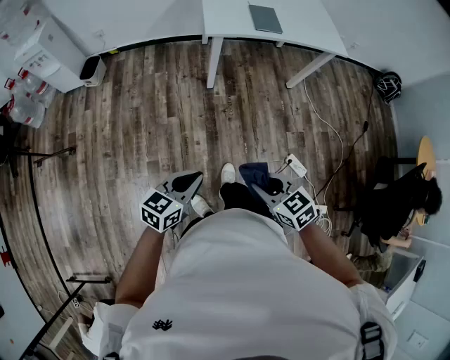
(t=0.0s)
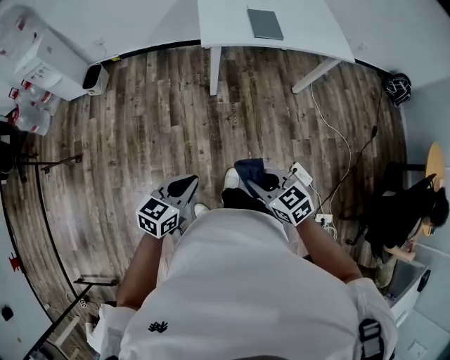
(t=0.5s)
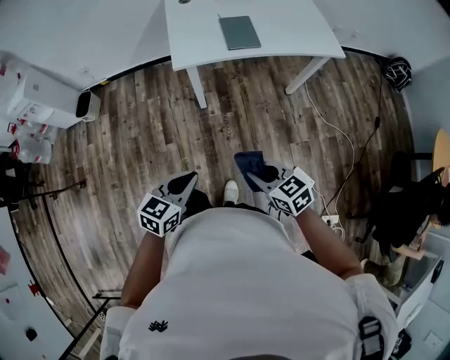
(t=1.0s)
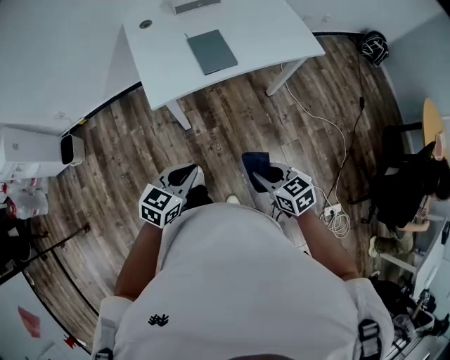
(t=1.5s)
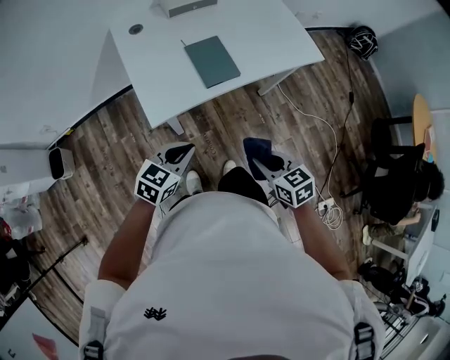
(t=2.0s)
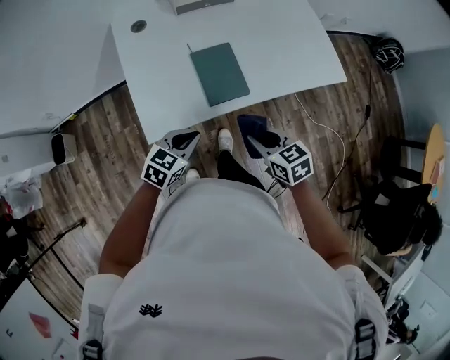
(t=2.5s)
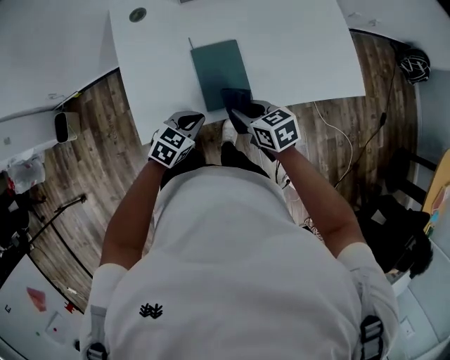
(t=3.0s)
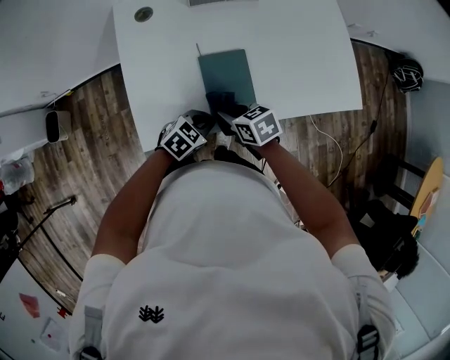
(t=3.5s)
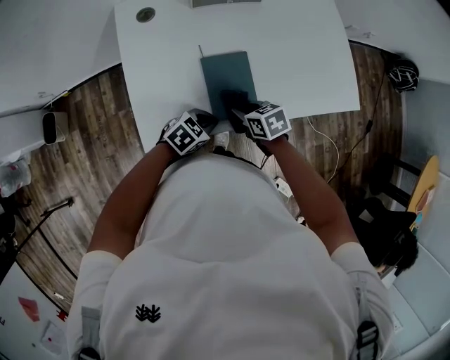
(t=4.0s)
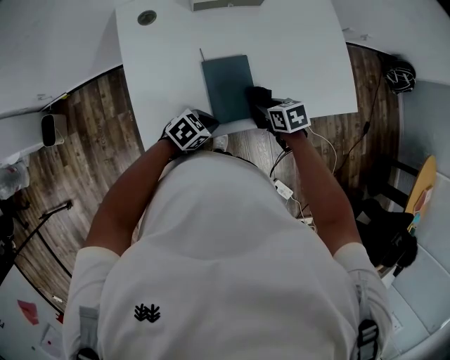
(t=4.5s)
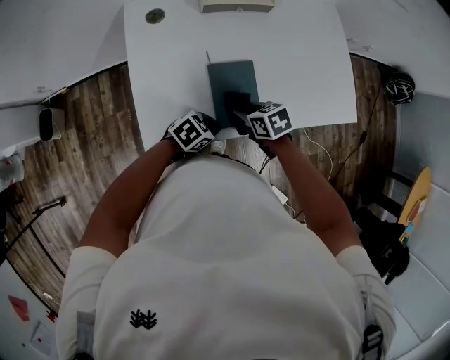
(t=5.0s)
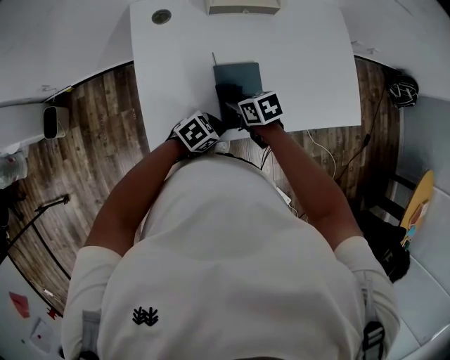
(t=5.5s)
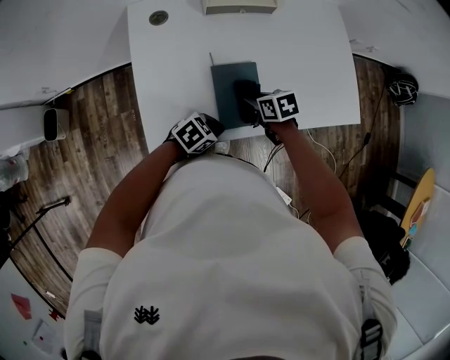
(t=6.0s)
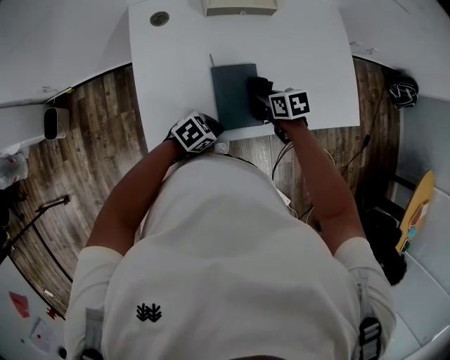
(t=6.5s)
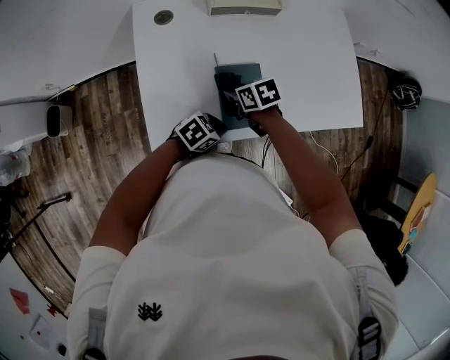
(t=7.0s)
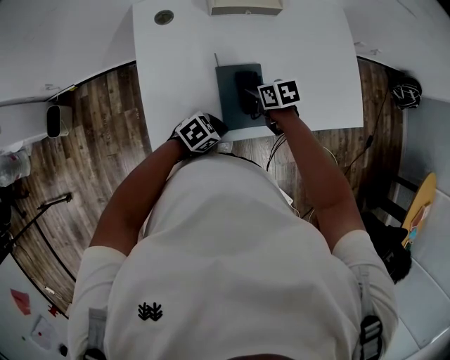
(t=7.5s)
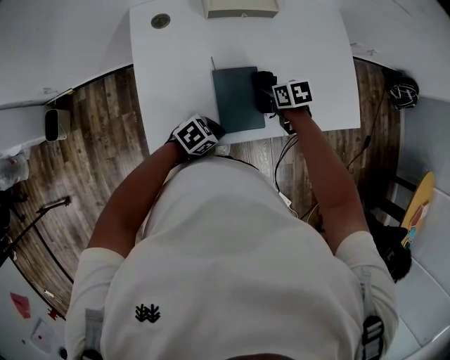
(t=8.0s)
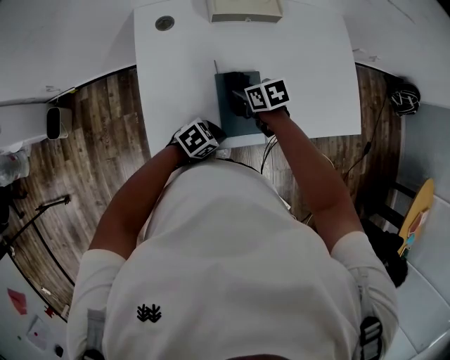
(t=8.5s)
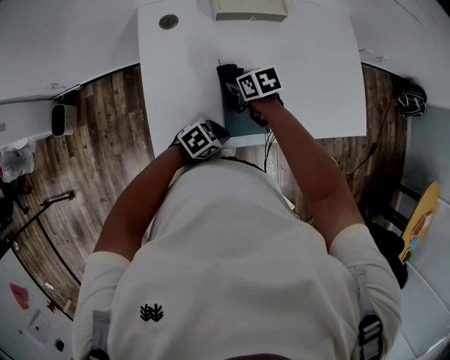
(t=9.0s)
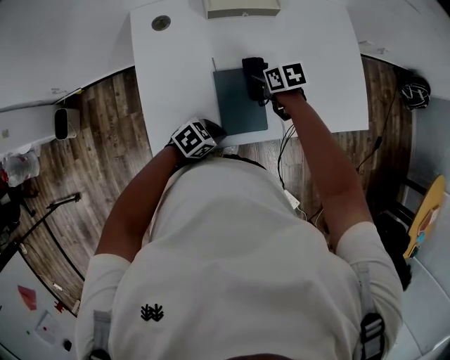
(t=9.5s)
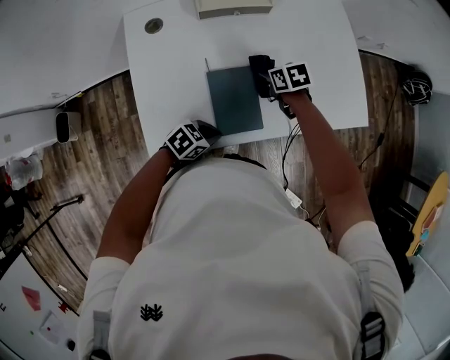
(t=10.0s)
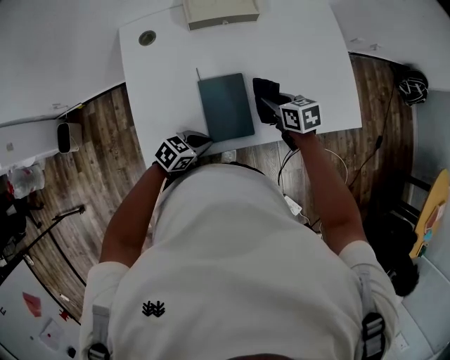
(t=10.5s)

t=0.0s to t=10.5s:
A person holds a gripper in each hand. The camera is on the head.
t=0.0s to t=2.0s: The two grippers travel together, approximately 50 cm. The right gripper rotates some 30 degrees; the left gripper swivels roughly 30 degrees.
t=2.0s to t=4.0s: The left gripper moves roughly 25 cm, and rotates some 20 degrees; the right gripper shifts by about 30 cm, and rotates some 20 degrees.
t=4.0s to t=6.5s: The right gripper moves roughly 10 cm.
t=6.5s to t=8.5s: The right gripper shifts by approximately 10 cm.
t=8.5s to t=10.5s: The right gripper shifts by some 15 cm.

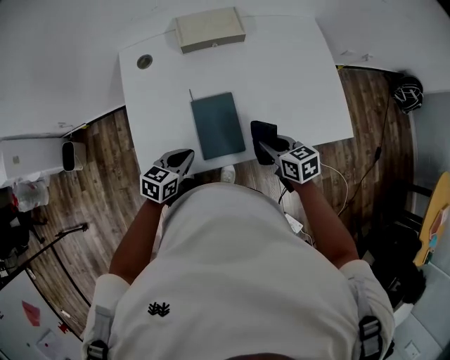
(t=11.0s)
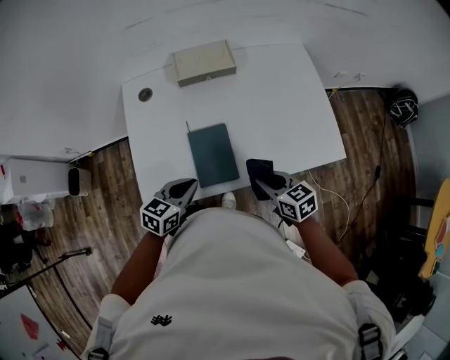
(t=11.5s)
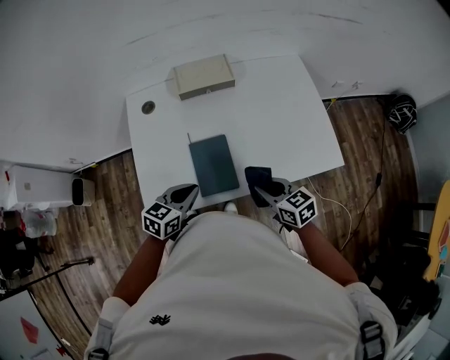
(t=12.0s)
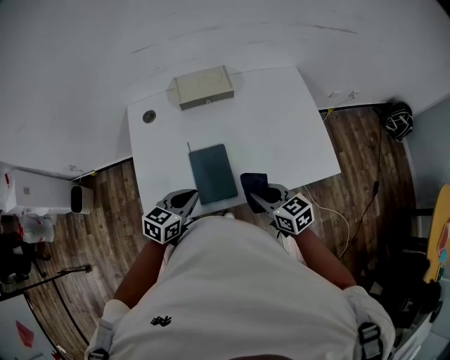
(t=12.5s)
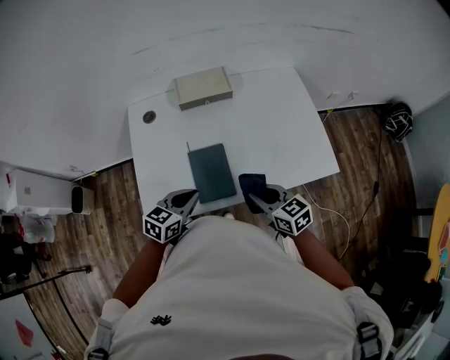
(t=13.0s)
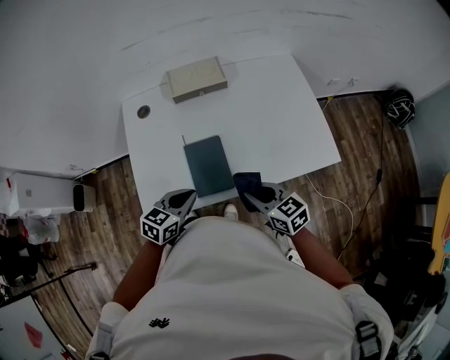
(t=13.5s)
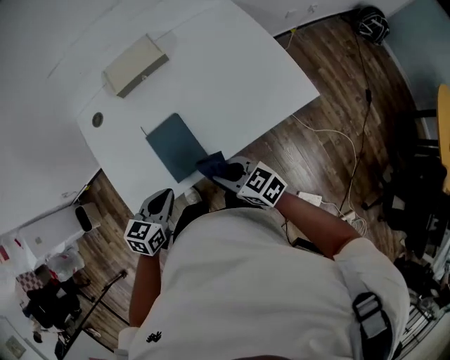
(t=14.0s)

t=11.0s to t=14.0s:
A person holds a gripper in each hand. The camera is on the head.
t=11.0s to t=12.5s: Both grippers move upward, some 5 cm.
t=12.5s to t=14.0s: The right gripper shifts by approximately 5 cm.

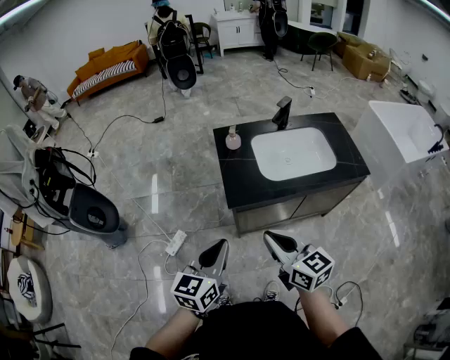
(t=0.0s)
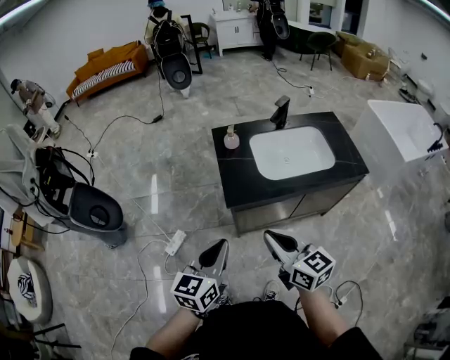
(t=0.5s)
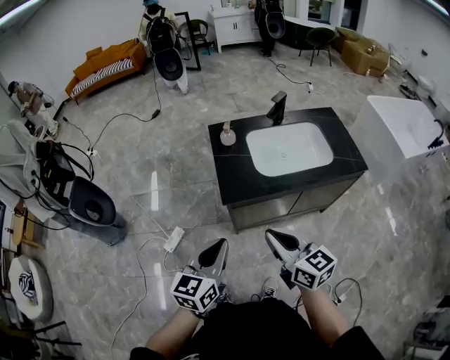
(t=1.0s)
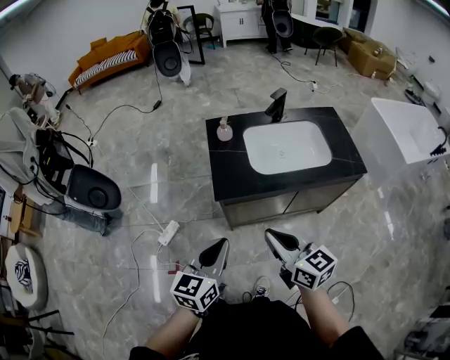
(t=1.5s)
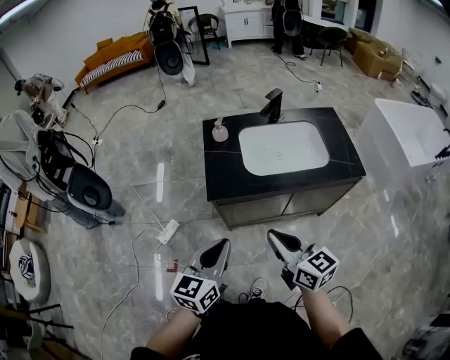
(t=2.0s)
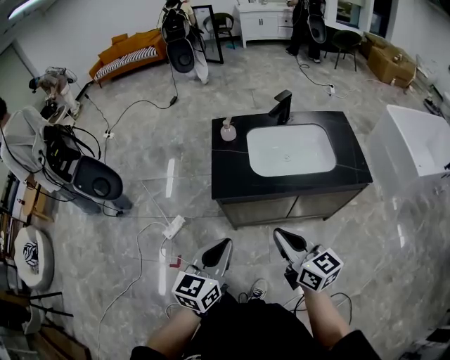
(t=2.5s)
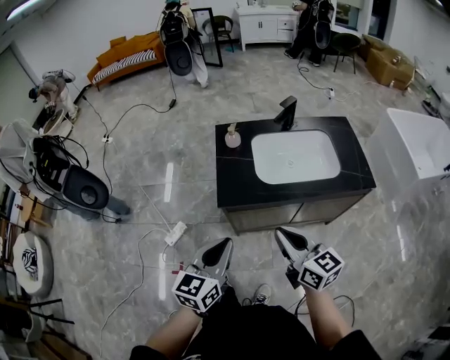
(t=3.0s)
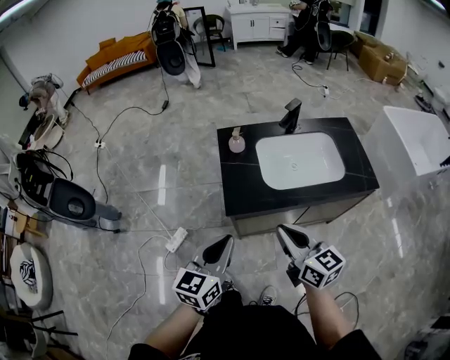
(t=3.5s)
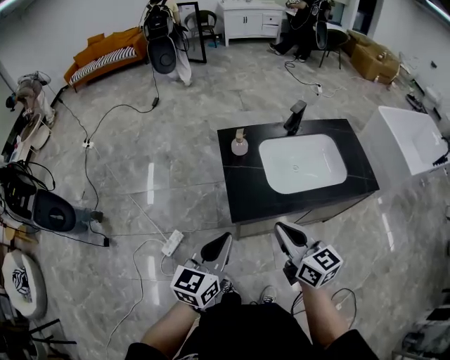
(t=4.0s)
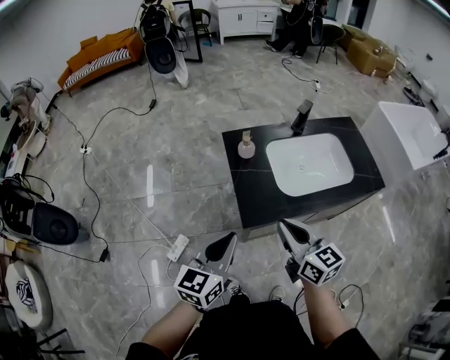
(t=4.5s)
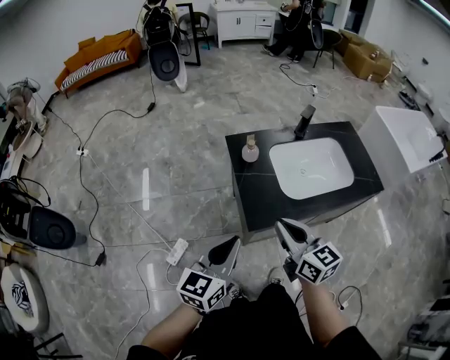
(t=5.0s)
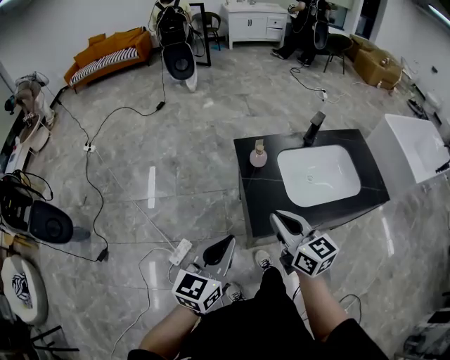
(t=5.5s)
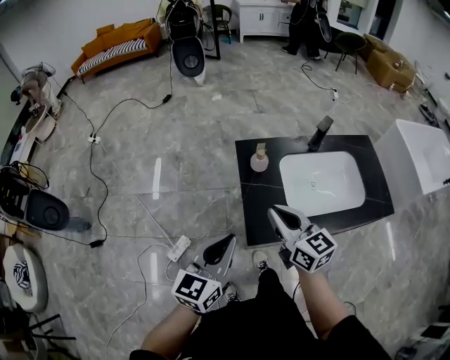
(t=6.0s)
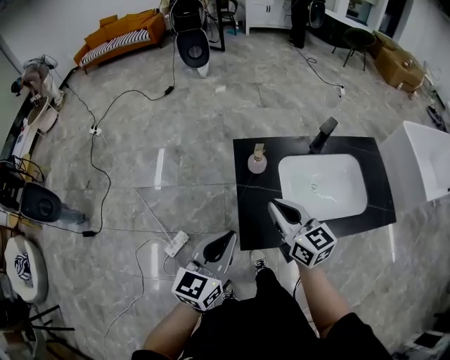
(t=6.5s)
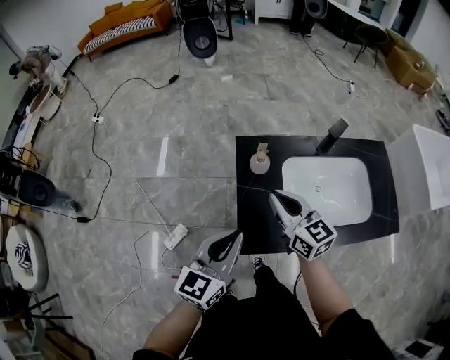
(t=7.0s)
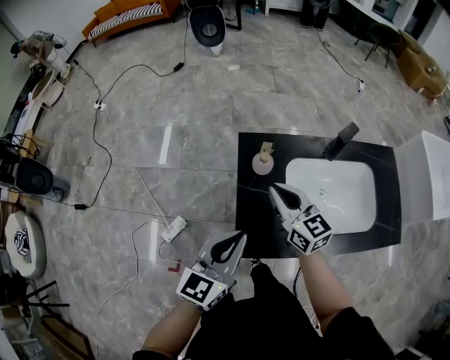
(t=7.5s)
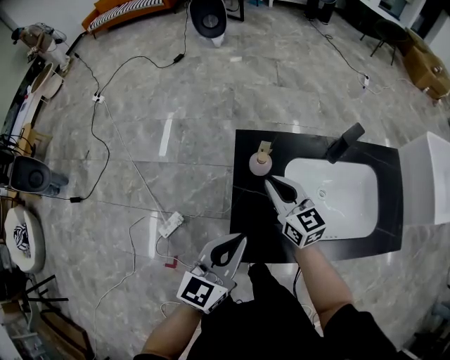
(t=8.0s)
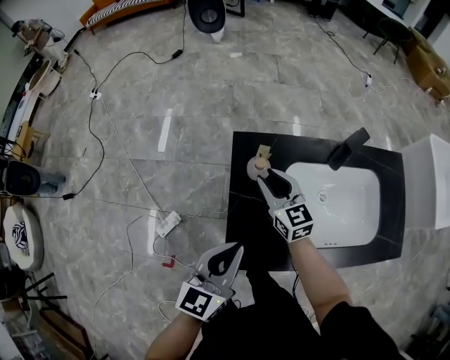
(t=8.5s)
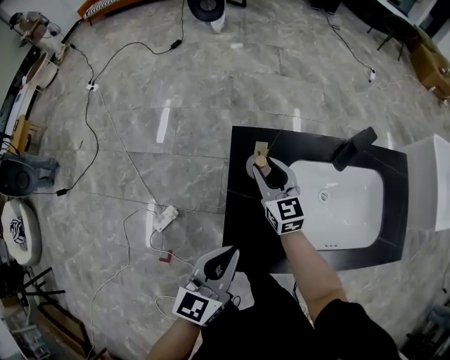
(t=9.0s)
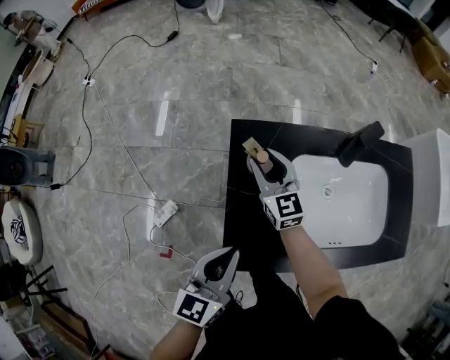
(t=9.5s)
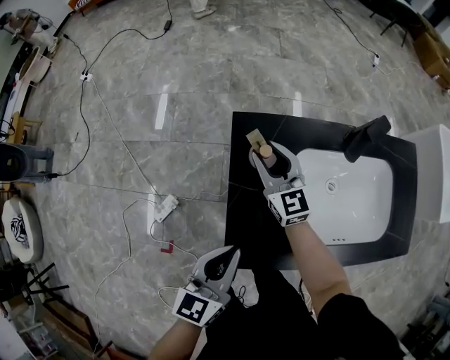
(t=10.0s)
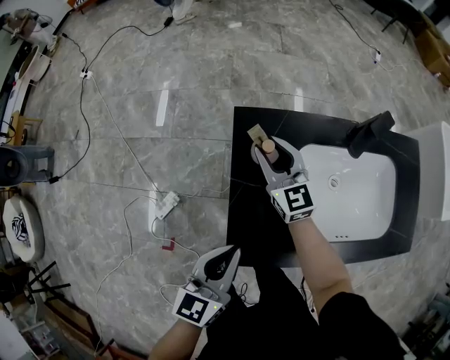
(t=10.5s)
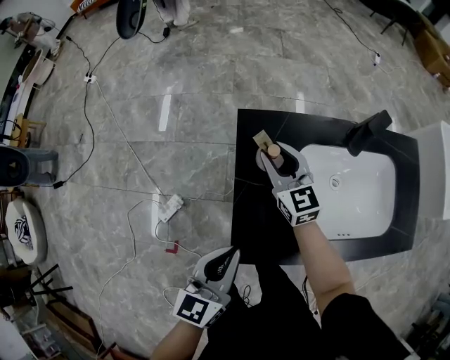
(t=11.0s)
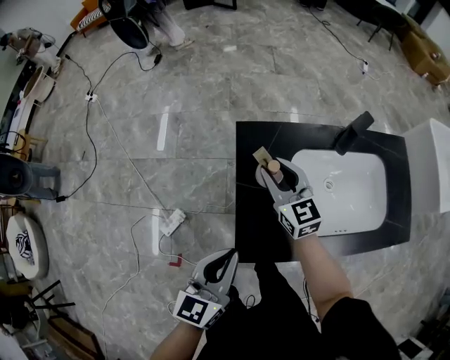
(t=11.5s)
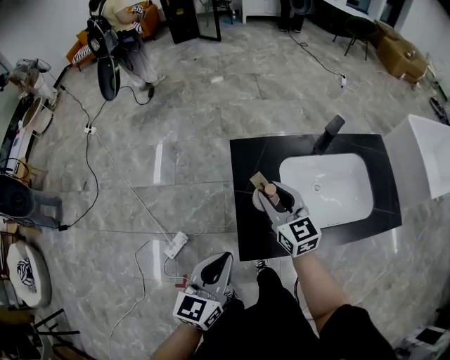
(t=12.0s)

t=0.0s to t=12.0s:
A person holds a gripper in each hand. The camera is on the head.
t=0.0s to t=2.0s: Both grippers move to the right, roughly 10 cm.
t=2.0s to t=4.0s: The two grippers go some 15 cm forward and to the left.
t=4.0s to t=6.0s: The left gripper heads forward, covering roughly 10 cm. The right gripper travels forward and to the left by about 15 cm.
t=6.0s to t=8.0s: The right gripper shifts about 20 cm forward and downward. Meanwhile the left gripper goes approximately 15 cm forward, to the right and downward.
t=8.0s to t=10.0s: The right gripper goes roughly 10 cm forward and downward, and opens, while the left gripper travels downward by about 5 cm.
t=10.0s to t=12.0s: The left gripper heads upward, backward and to the left, covering about 10 cm; the right gripper travels backward and upward by about 15 cm.

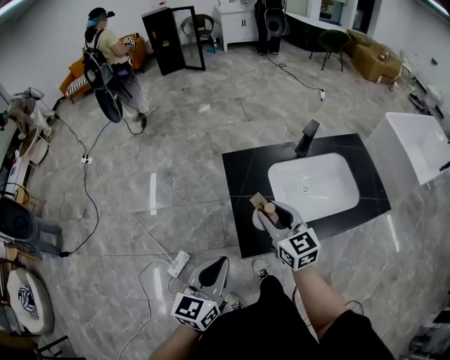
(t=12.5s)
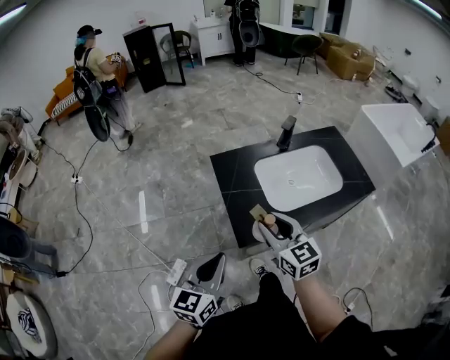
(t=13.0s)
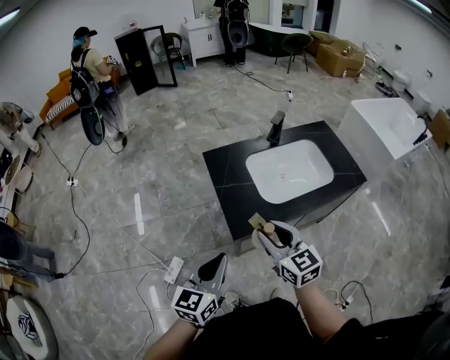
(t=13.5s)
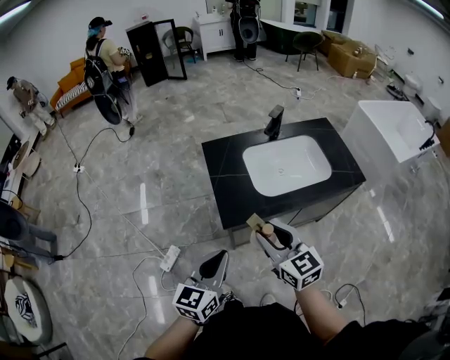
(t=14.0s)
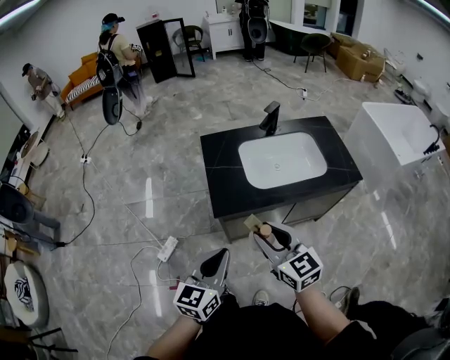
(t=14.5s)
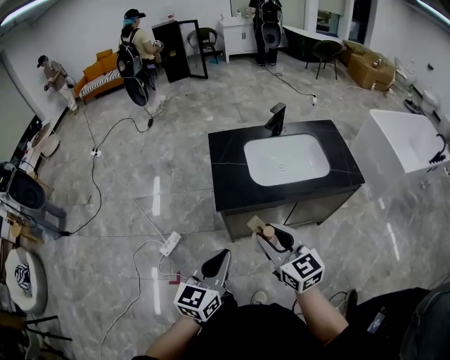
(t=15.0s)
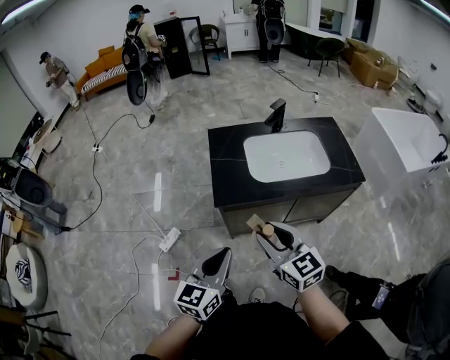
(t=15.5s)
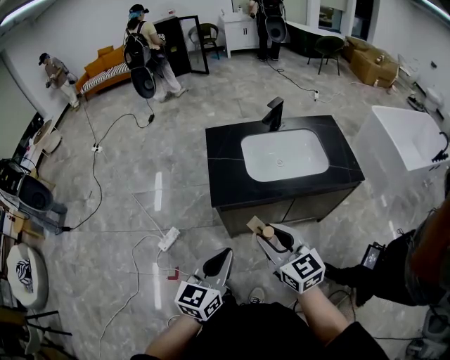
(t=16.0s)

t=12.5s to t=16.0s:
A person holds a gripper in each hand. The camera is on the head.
t=12.5s to t=14.5s: The left gripper goes about 20 cm backward and to the right. The right gripper goes roughly 25 cm backward.
t=14.5s to t=16.0s: The left gripper changes place by some 5 cm. Meanwhile the right gripper shifts by about 5 cm.
